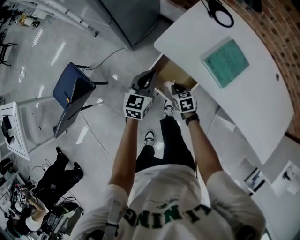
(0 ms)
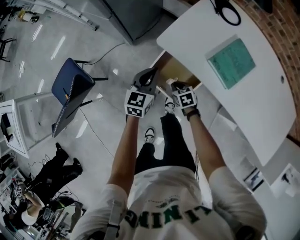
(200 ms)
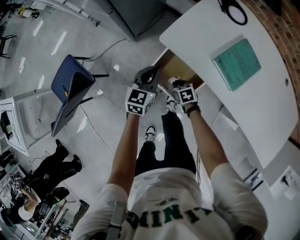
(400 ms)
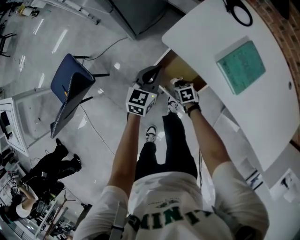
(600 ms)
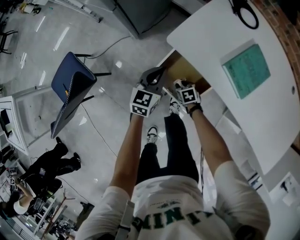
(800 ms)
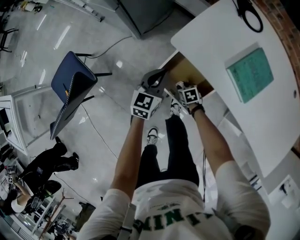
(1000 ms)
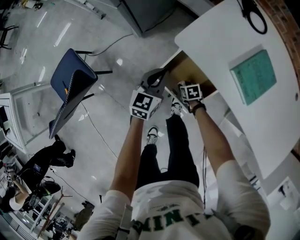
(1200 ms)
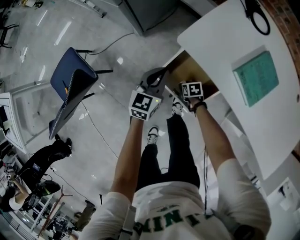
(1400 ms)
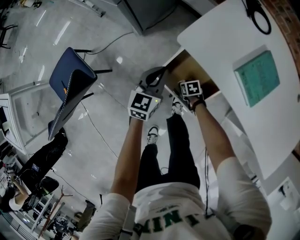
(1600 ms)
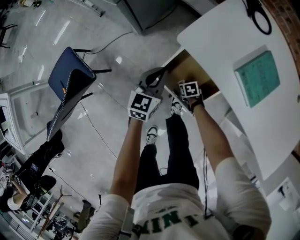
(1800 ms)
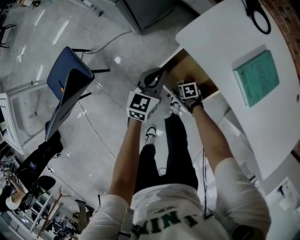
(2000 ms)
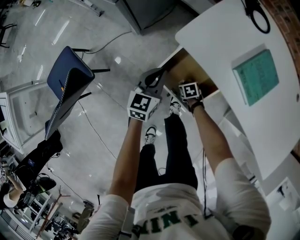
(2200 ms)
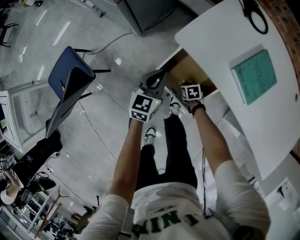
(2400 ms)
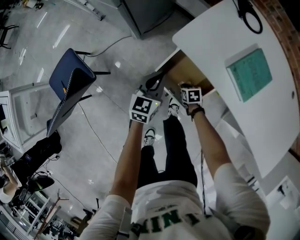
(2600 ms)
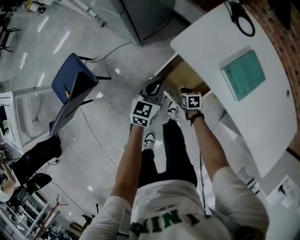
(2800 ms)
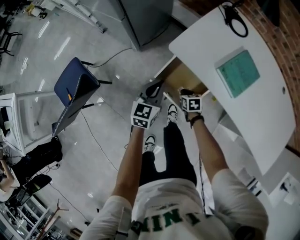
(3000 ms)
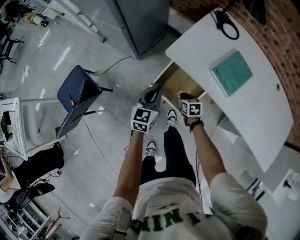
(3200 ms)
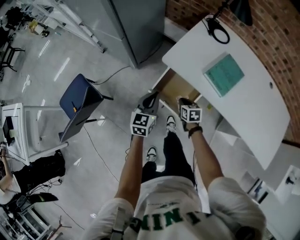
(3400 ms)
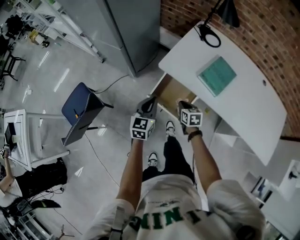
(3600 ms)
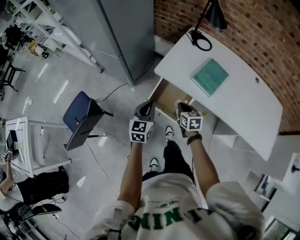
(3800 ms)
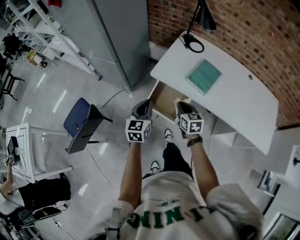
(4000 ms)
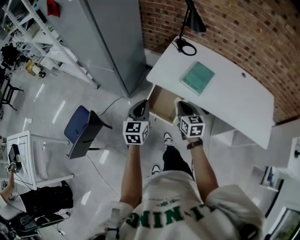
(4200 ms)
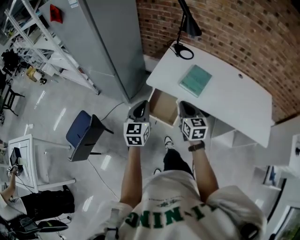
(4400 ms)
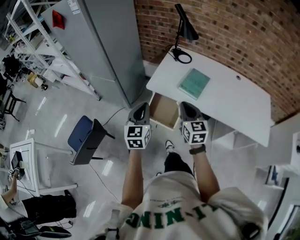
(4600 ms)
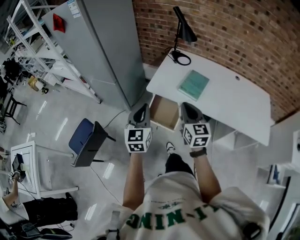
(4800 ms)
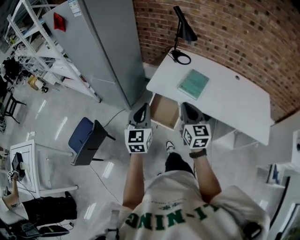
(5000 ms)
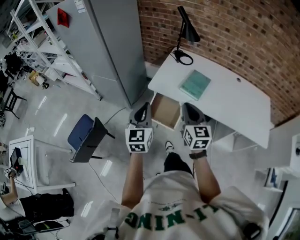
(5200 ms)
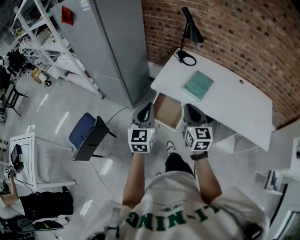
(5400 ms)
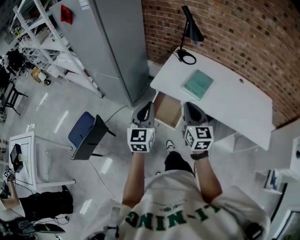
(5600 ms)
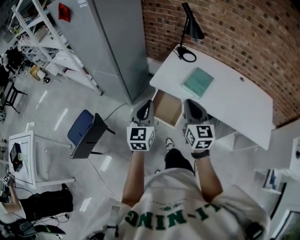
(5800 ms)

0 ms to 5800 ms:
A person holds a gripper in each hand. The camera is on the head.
0 ms to 1400 ms: The left gripper moves downward, some 10 cm. The right gripper is displaced downward by some 20 cm, turns by about 20 degrees, and opens its fingers.
1400 ms to 2800 ms: The right gripper goes approximately 10 cm upward, and closes its fingers; the left gripper moves approximately 5 cm.
2800 ms to 4400 ms: The left gripper moves upward and backward, some 30 cm. The right gripper heads upward, covering some 50 cm, and angles its fingers upward, by roughly 50 degrees.
4400 ms to 5800 ms: The right gripper heads upward, covering roughly 10 cm; the left gripper goes roughly 5 cm upward.

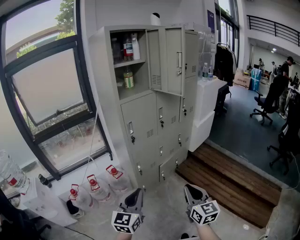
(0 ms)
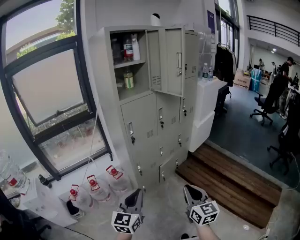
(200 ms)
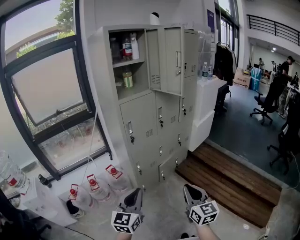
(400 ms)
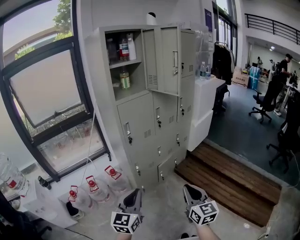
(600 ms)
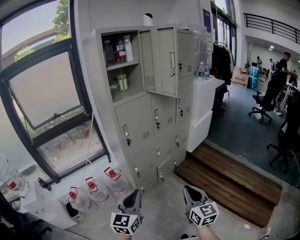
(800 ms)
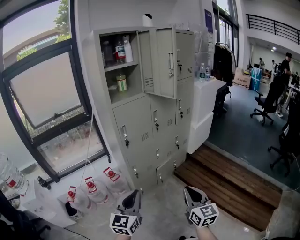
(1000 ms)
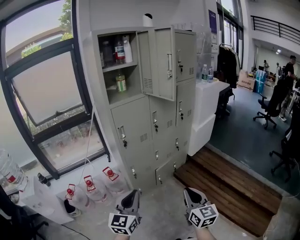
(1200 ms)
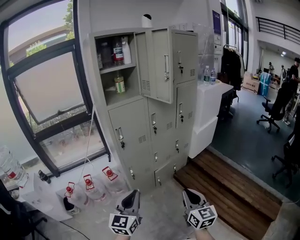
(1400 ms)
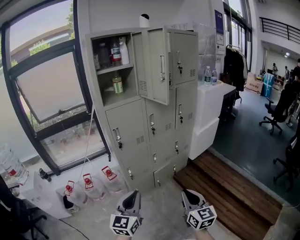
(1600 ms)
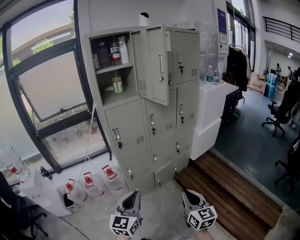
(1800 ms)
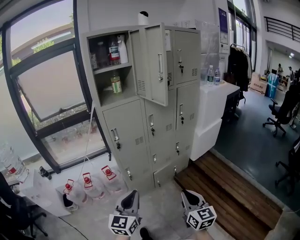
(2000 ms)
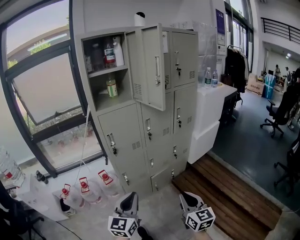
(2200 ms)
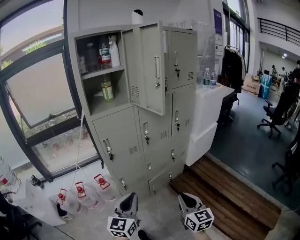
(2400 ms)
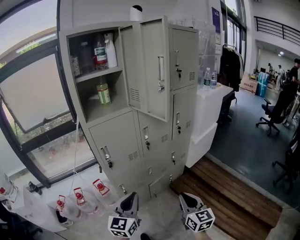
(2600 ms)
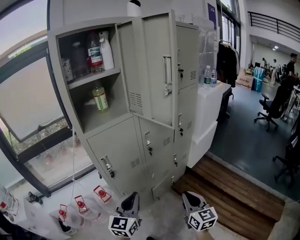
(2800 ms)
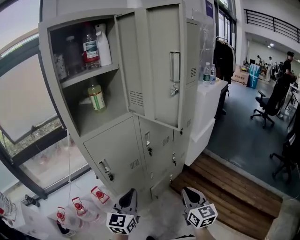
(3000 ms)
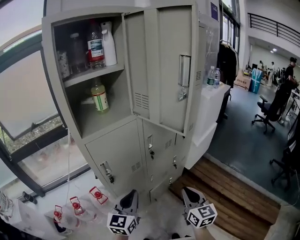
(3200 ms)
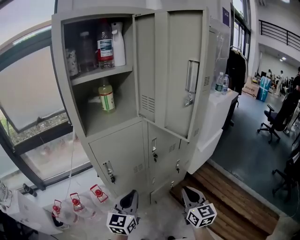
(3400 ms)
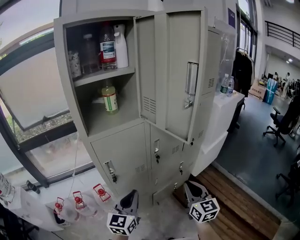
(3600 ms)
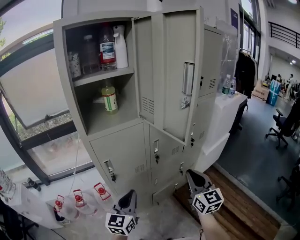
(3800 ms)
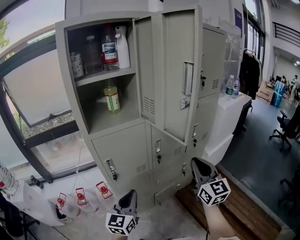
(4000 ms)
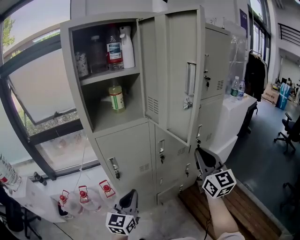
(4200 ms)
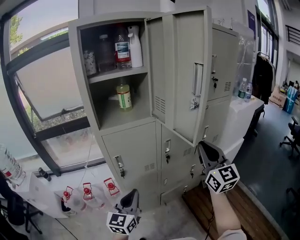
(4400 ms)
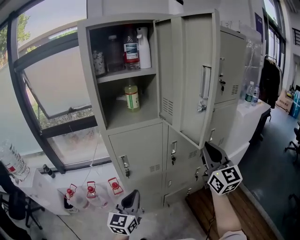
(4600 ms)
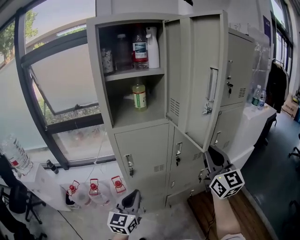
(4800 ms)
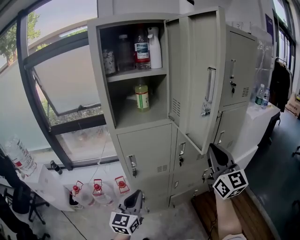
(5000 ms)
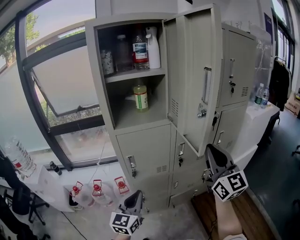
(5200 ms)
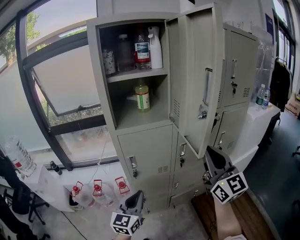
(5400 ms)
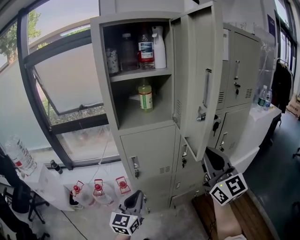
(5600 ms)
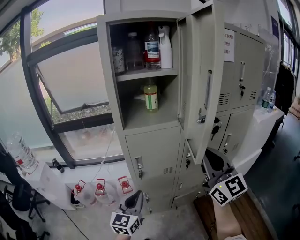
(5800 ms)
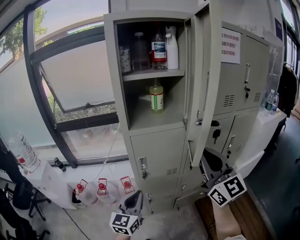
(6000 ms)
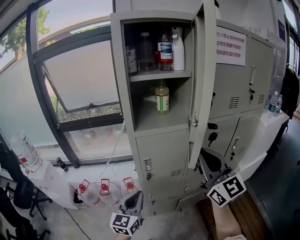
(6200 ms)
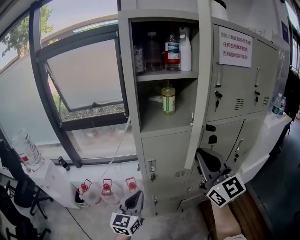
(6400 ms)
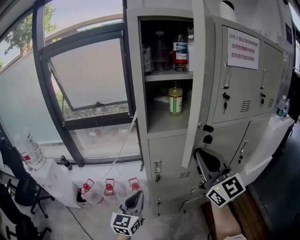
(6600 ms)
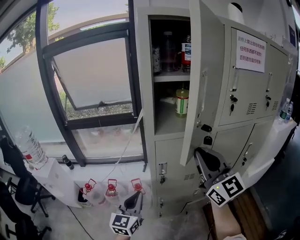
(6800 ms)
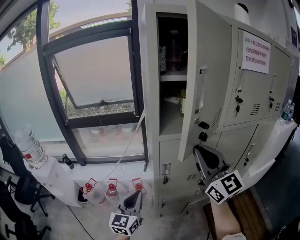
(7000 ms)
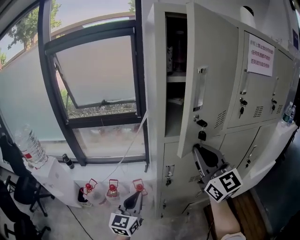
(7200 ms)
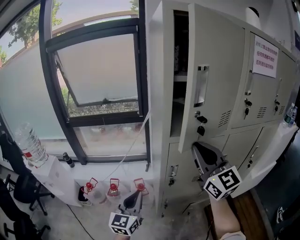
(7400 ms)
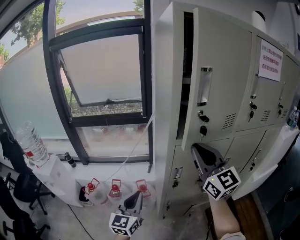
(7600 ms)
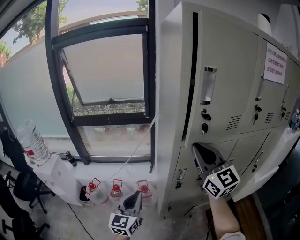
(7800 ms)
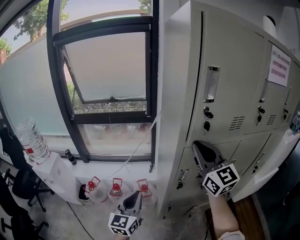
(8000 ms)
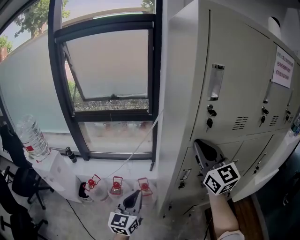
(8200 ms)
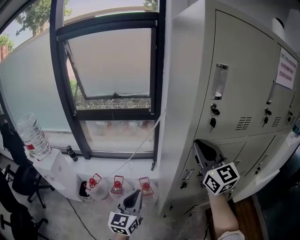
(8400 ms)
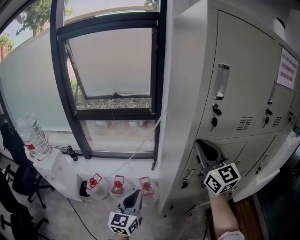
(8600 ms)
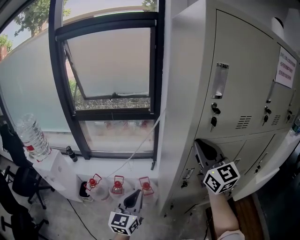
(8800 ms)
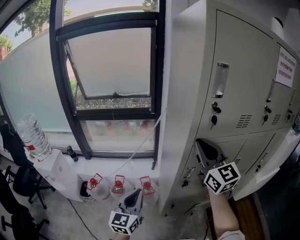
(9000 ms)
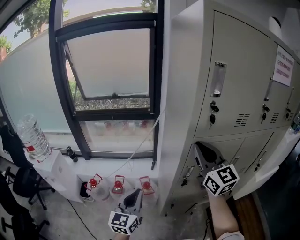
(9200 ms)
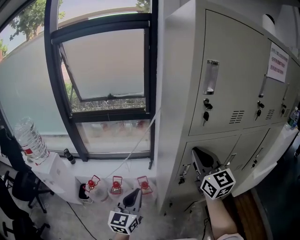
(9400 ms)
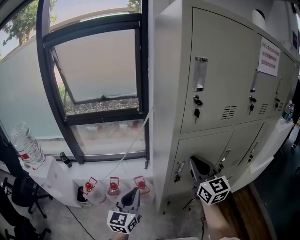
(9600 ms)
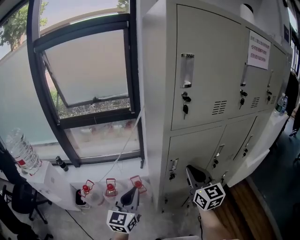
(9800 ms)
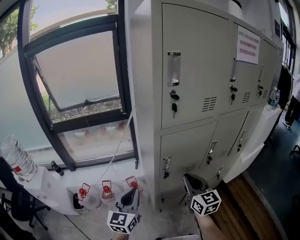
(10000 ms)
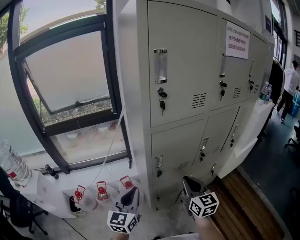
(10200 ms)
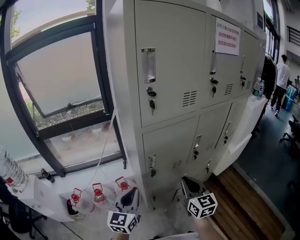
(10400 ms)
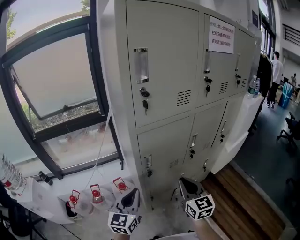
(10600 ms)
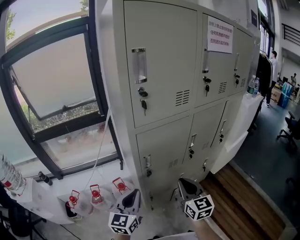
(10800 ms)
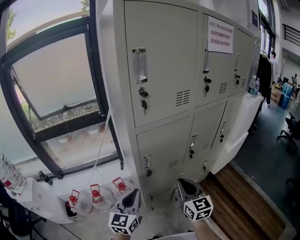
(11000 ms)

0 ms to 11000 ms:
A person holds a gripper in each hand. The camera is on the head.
0 ms to 1600 ms: The left gripper goes approximately 15 cm to the right. The right gripper moves to the right and forward, roughly 15 cm.
1600 ms to 3200 ms: The two grippers go approximately 30 cm forward.
3200 ms to 4800 ms: The left gripper swivels approximately 20 degrees. The right gripper moves upward and forward, some 25 cm, and turns by about 30 degrees.
4800 ms to 6200 ms: The left gripper travels to the left by roughly 5 cm, while the right gripper moves to the left, some 15 cm.
6200 ms to 7800 ms: Both grippers travel together to the left and forward, approximately 20 cm.
7800 ms to 9400 ms: The right gripper travels downward by about 5 cm.
9400 ms to 11000 ms: The right gripper goes roughly 25 cm downward, to the right and backward, and swivels approximately 30 degrees, while the left gripper shifts roughly 15 cm to the right.

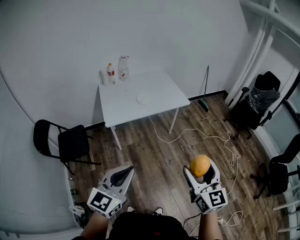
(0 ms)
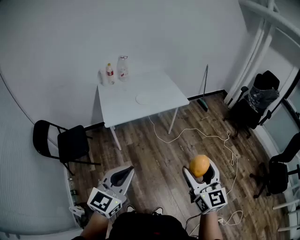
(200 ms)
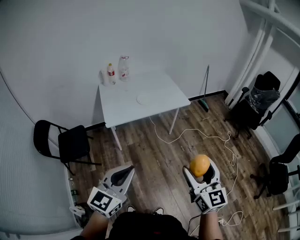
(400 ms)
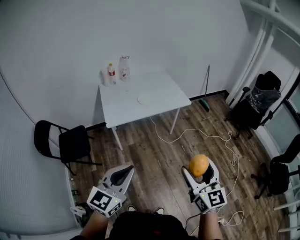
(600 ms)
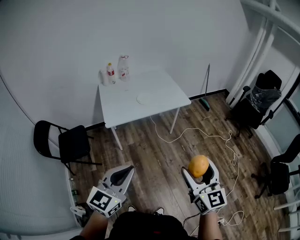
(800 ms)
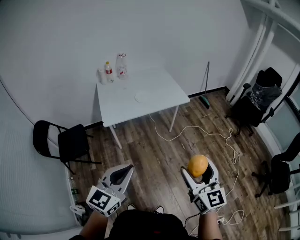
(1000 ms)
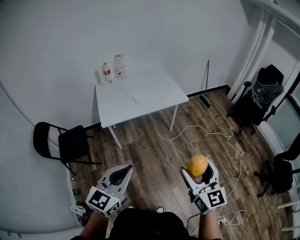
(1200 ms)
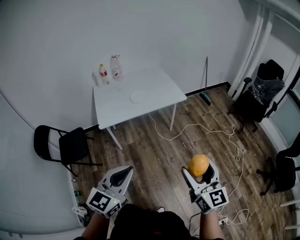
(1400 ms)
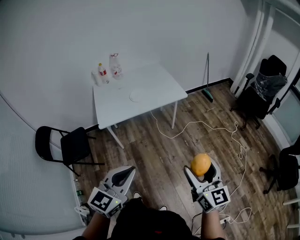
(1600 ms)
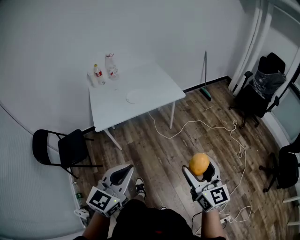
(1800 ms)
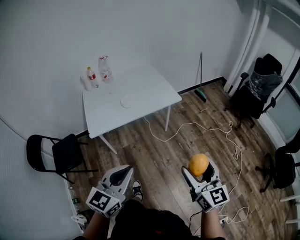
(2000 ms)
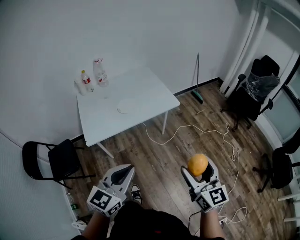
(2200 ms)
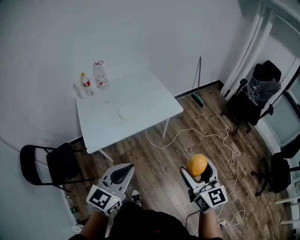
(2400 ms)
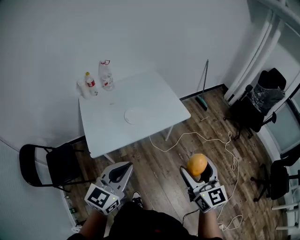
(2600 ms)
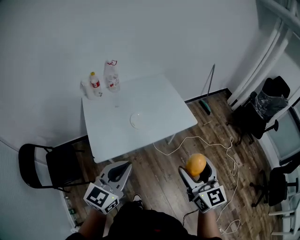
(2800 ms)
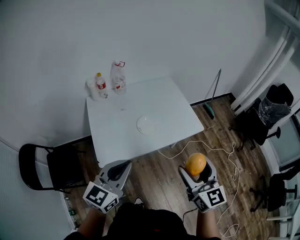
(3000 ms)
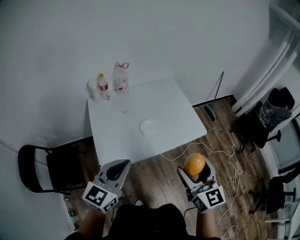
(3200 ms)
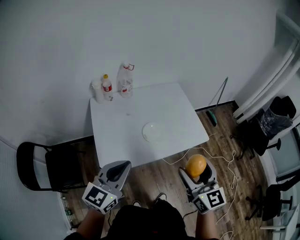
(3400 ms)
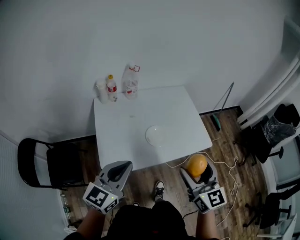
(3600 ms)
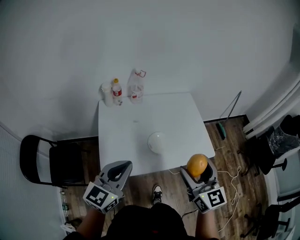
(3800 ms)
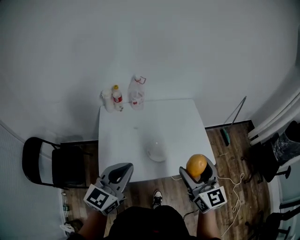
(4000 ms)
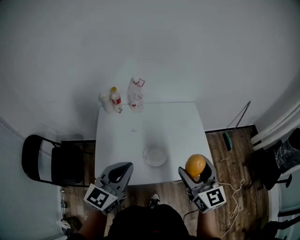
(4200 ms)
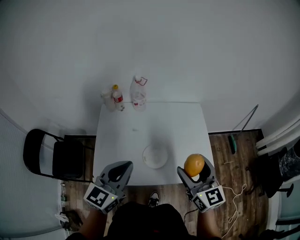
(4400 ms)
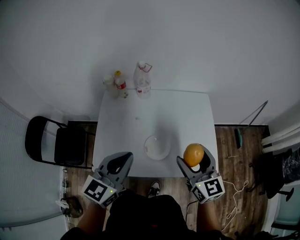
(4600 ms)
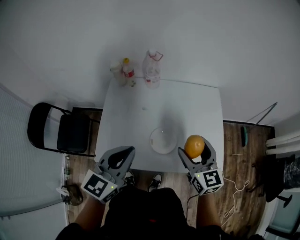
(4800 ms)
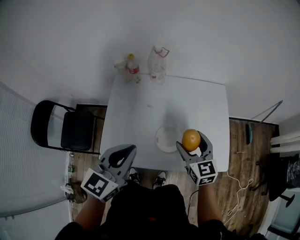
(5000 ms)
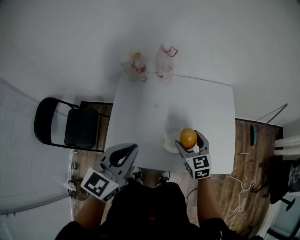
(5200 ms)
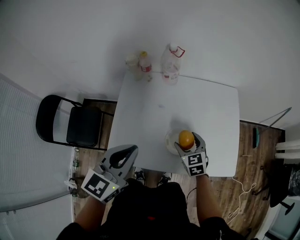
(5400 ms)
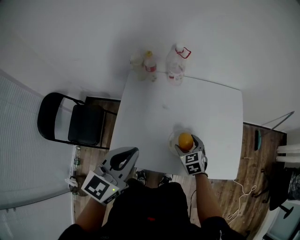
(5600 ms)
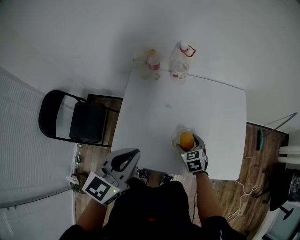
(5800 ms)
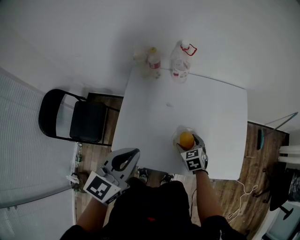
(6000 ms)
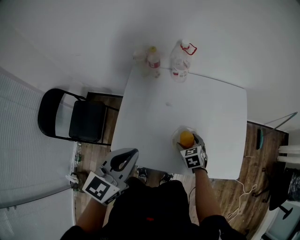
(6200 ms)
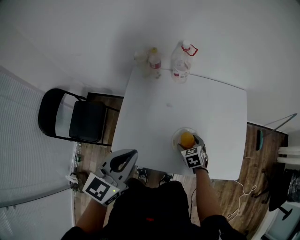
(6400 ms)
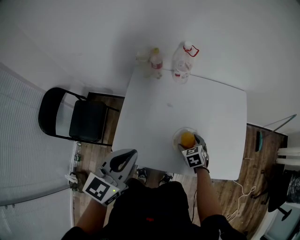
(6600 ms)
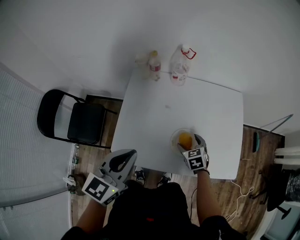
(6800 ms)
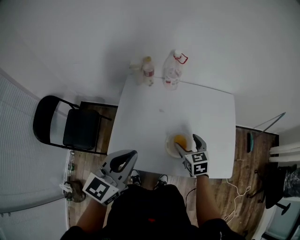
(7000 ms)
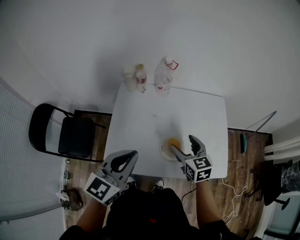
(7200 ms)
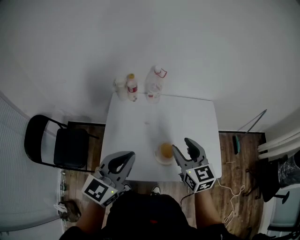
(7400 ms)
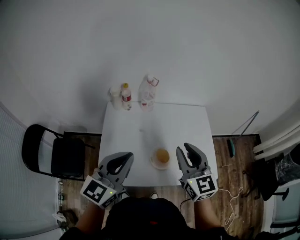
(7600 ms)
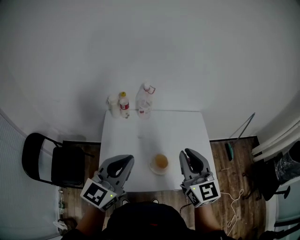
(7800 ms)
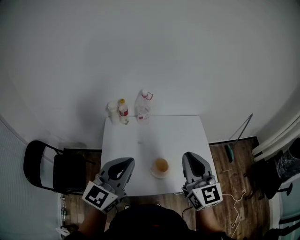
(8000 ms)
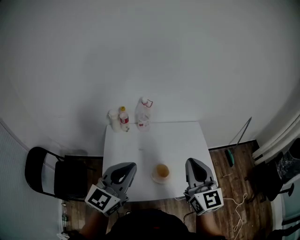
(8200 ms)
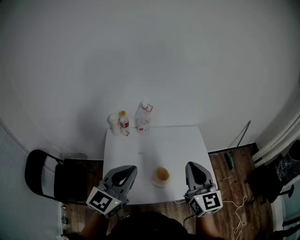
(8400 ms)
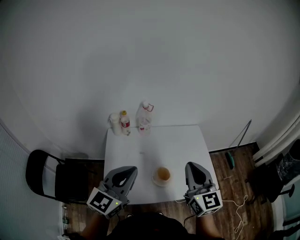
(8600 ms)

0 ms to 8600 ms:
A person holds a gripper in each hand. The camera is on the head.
0 ms to 1400 ms: The grippers both shift to the right by some 10 cm.
1400 ms to 2800 ms: Both grippers move forward and to the left, roughly 35 cm.
2800 ms to 4400 ms: Both grippers travel together forward, some 30 cm. The right gripper rotates roughly 20 degrees. Meanwhile the left gripper swivels some 20 degrees.
4400 ms to 5800 ms: The left gripper travels to the left by approximately 5 cm. The right gripper heads downward, covering roughly 35 cm, and points its fingers roughly 40 degrees further downward.
5800 ms to 7200 ms: The right gripper travels upward by roughly 20 cm, and rotates some 20 degrees.
7200 ms to 8600 ms: The left gripper travels upward by about 10 cm. The right gripper shifts roughly 20 cm upward, points its fingers approximately 30 degrees further upward, and closes.
